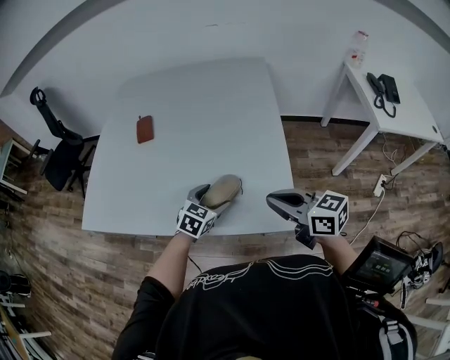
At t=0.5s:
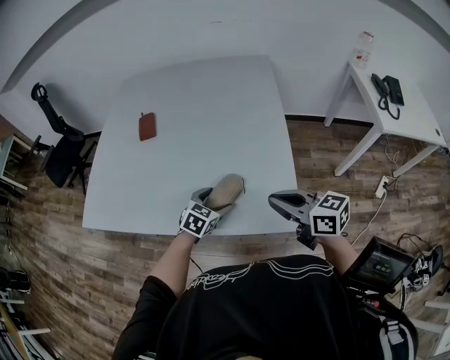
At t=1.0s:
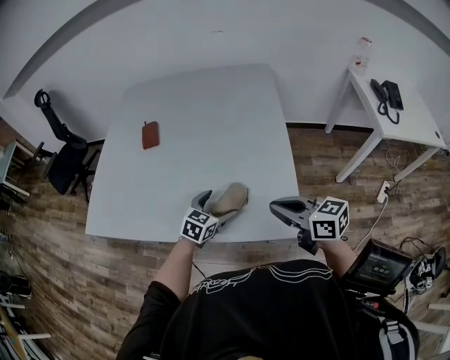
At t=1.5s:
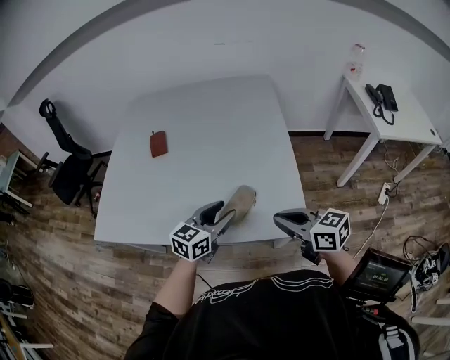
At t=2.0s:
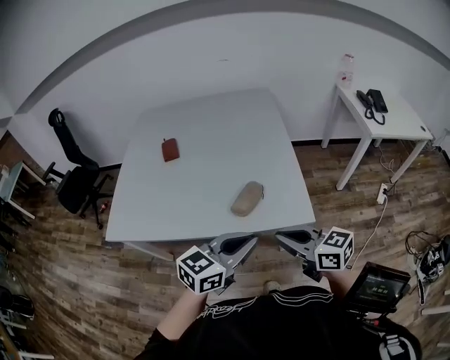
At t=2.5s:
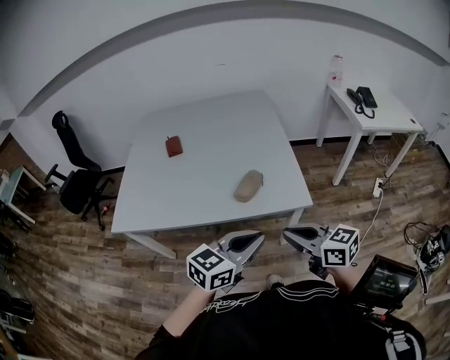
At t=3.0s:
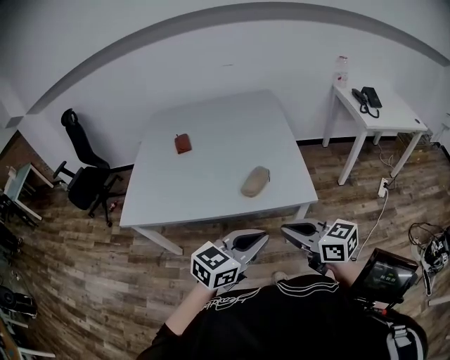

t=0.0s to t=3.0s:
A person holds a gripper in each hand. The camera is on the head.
t=0.0s to t=1.5s: The left gripper goes roughly 10 cm upward, and changes its angle by approximately 30 degrees.
t=1.5s to t=3.0s: The left gripper is displaced backward and upward by some 30 cm, and closes up. The right gripper goes roughly 20 cm backward.

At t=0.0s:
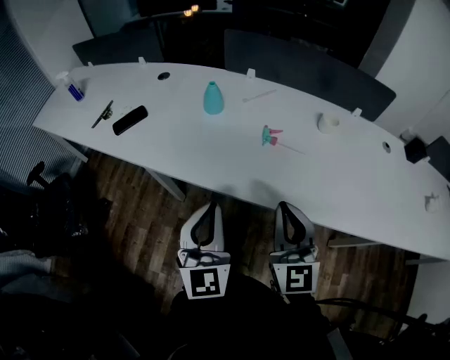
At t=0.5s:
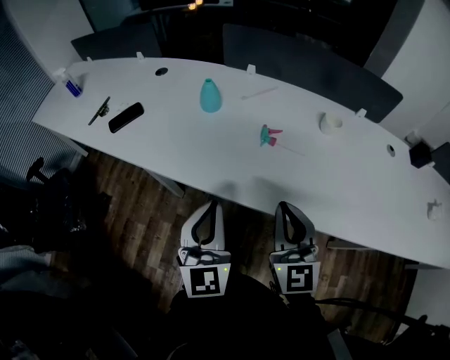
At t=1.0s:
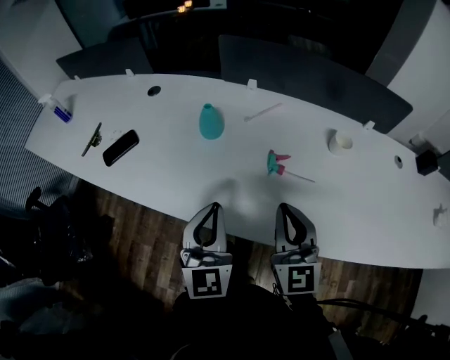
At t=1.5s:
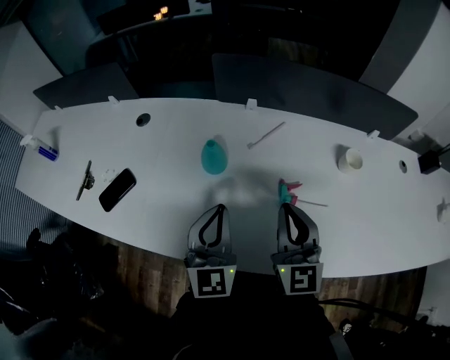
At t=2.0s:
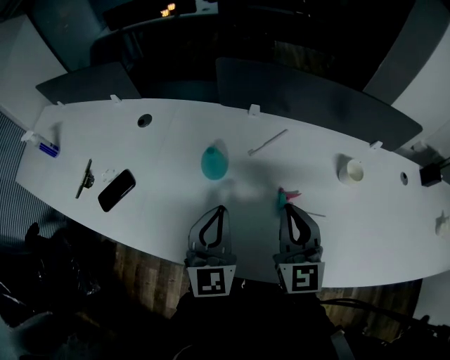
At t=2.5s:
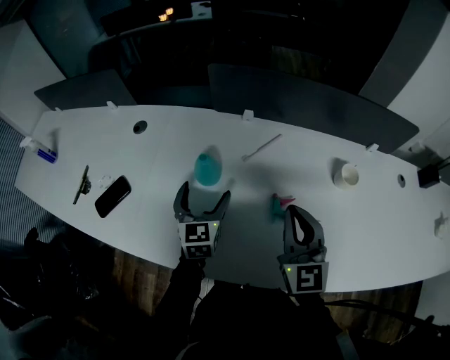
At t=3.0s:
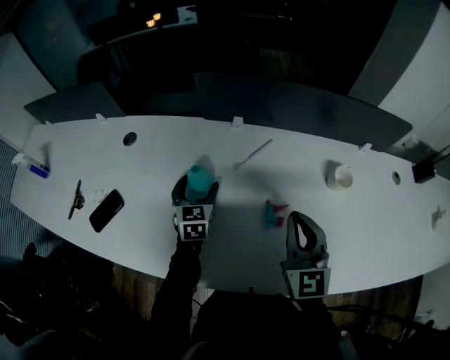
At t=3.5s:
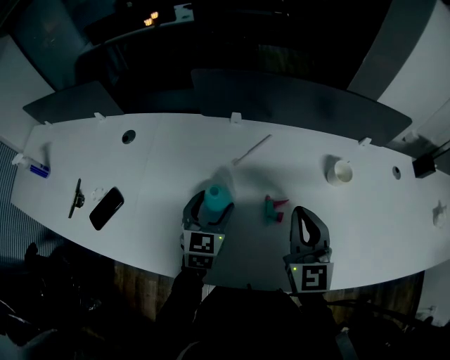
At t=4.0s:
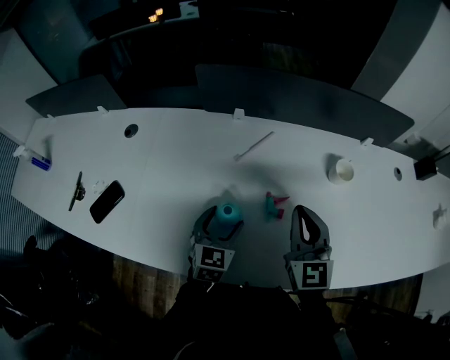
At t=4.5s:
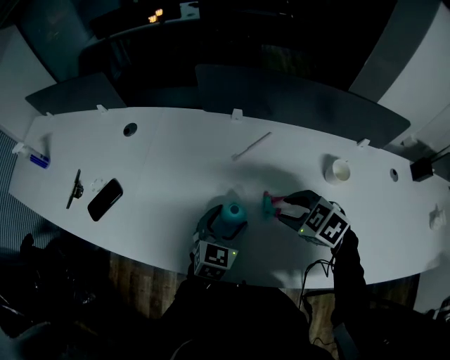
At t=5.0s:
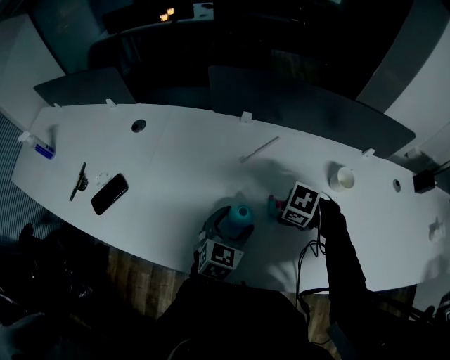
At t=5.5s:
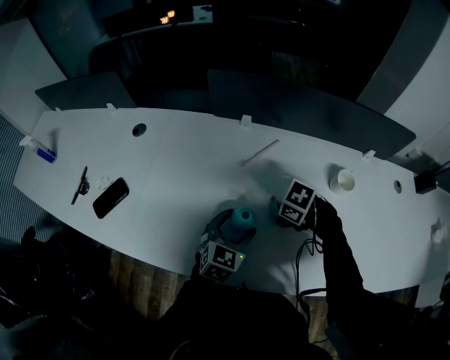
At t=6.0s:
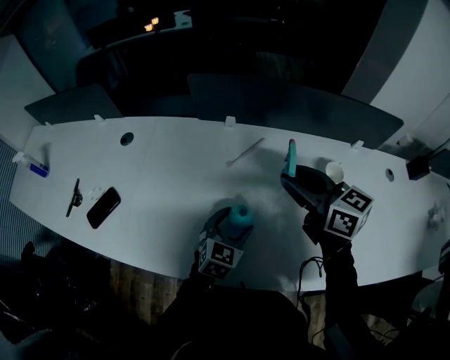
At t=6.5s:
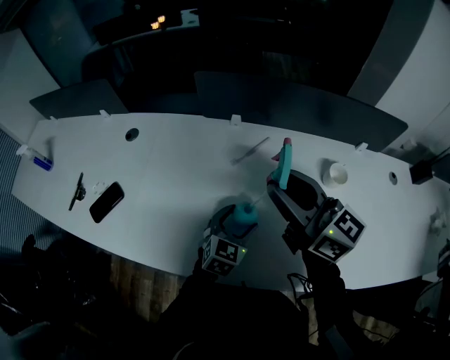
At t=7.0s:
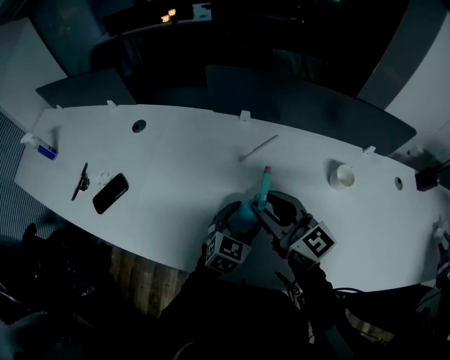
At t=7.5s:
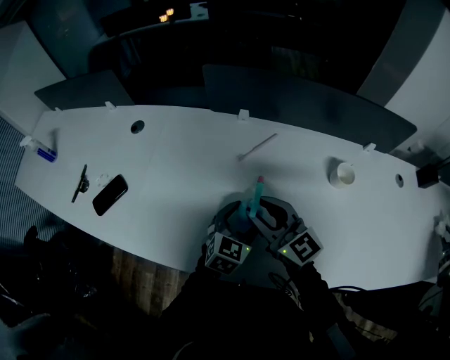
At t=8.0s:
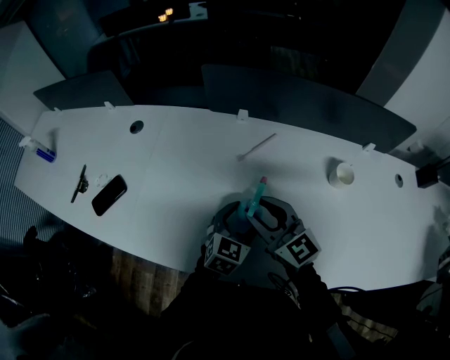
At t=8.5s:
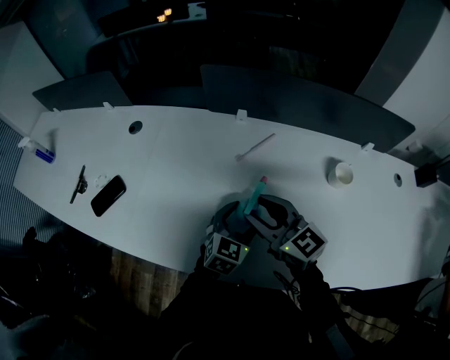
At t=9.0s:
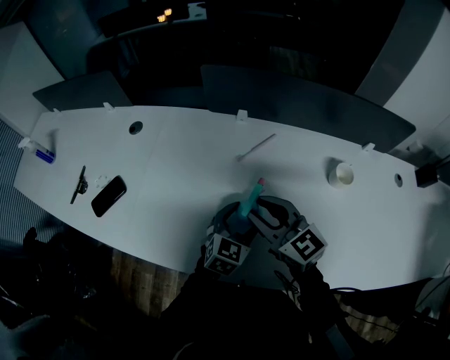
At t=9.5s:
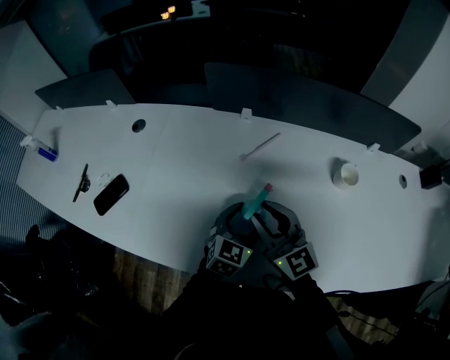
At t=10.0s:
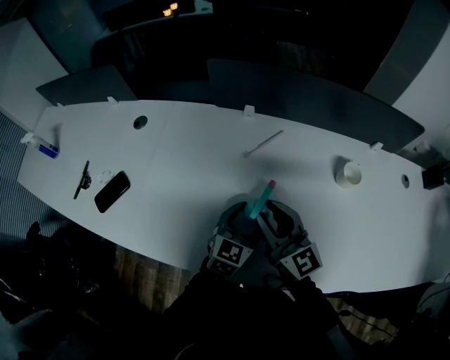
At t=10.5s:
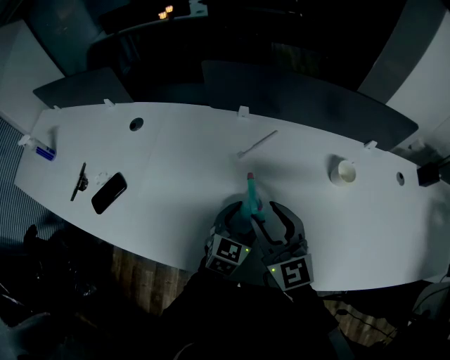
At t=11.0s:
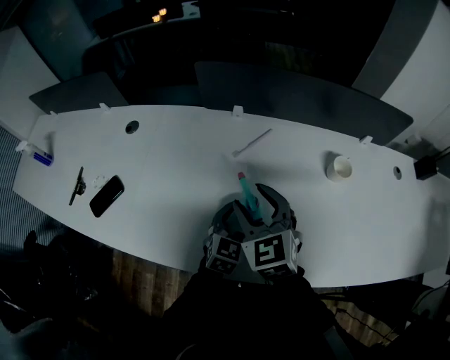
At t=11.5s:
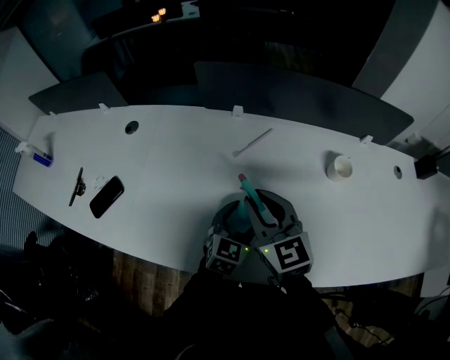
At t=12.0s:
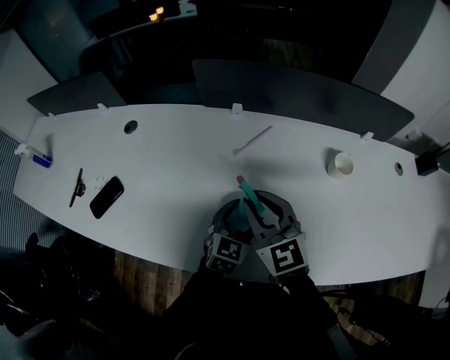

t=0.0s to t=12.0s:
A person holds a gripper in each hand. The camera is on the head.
t=0.0s to t=2.0s: Both grippers move forward, about 30 cm.
t=2.0s to t=4.0s: The right gripper shifts some 5 cm to the right. The left gripper is displaced downward and to the right by approximately 15 cm, goes forward and returns, some 15 cm each way, changes its angle by some 30 degrees, and opens its fingers.
t=4.0s to t=6.0s: The left gripper shifts by approximately 5 cm; the right gripper reaches about 20 cm downward, then returns, rotates approximately 40 degrees, and opens up.
t=6.0s to t=8.0s: The right gripper moves to the left and downward, roughly 15 cm, and rotates approximately 20 degrees.
t=8.0s to t=10.0s: The grippers move only a little.
t=10.0s to t=12.0s: The right gripper swivels about 30 degrees, and opens, then closes again.

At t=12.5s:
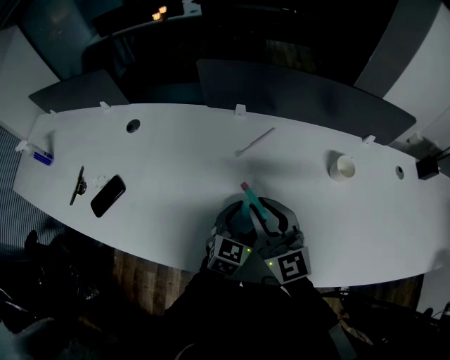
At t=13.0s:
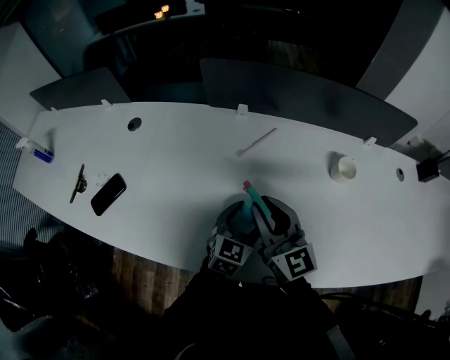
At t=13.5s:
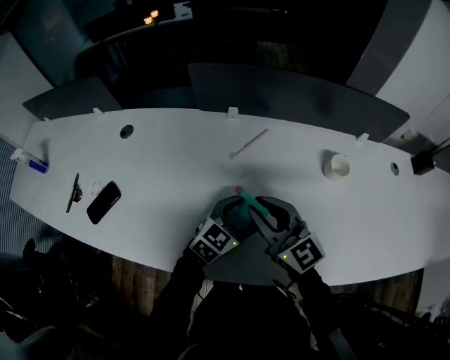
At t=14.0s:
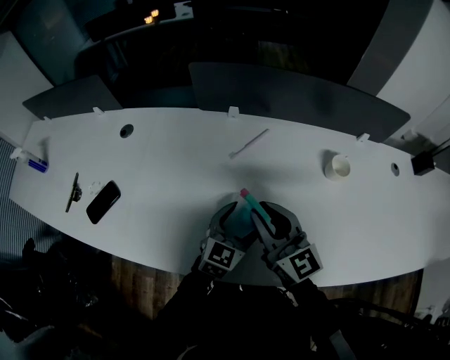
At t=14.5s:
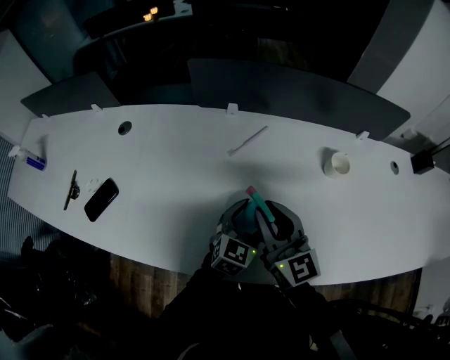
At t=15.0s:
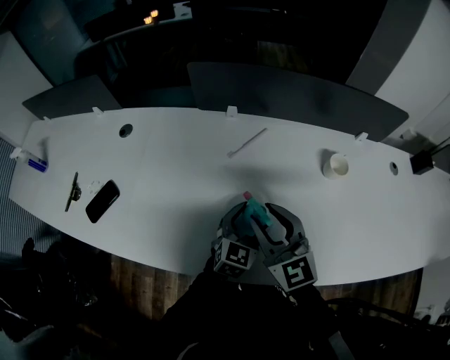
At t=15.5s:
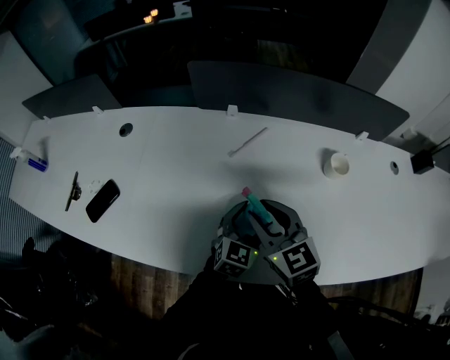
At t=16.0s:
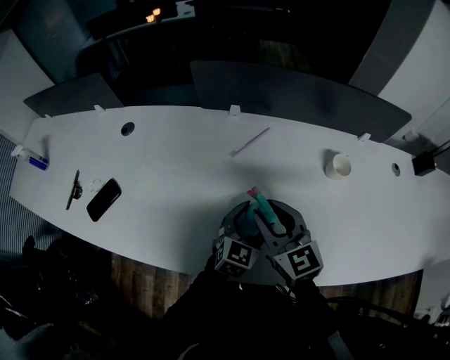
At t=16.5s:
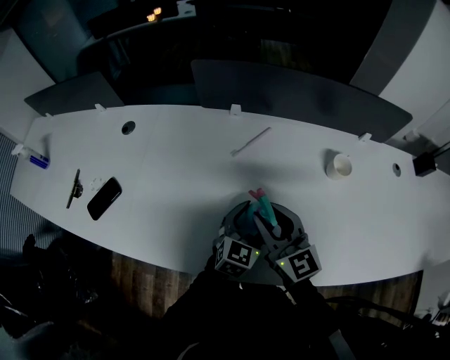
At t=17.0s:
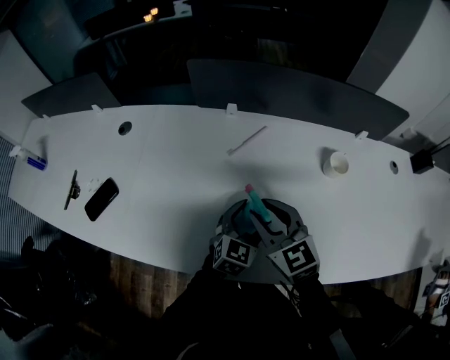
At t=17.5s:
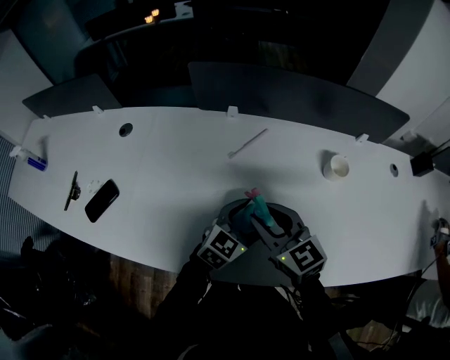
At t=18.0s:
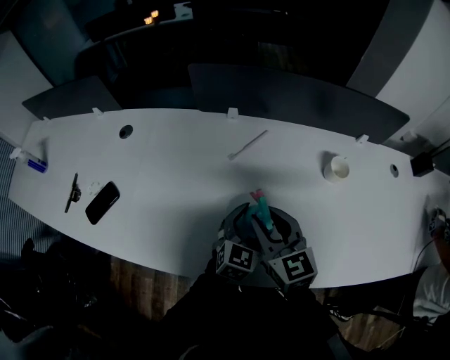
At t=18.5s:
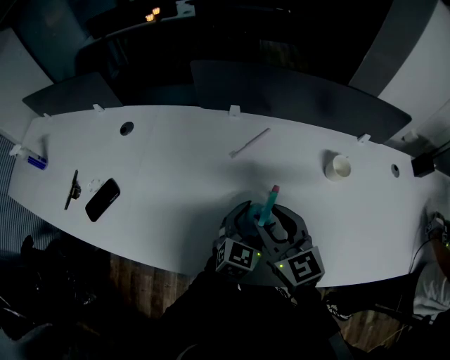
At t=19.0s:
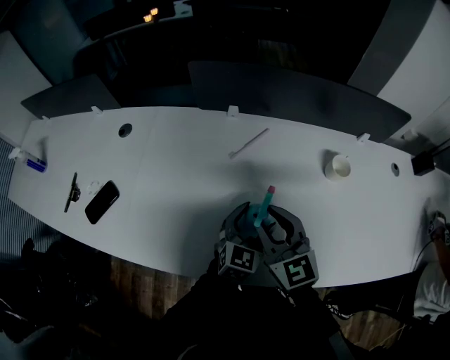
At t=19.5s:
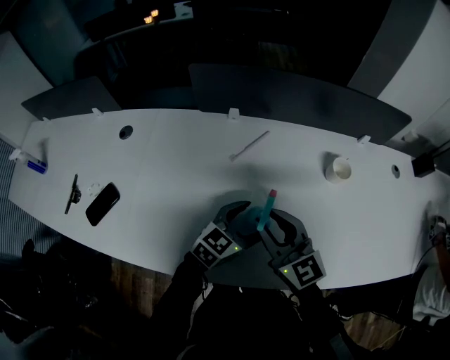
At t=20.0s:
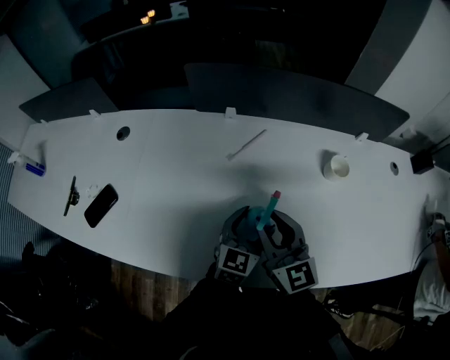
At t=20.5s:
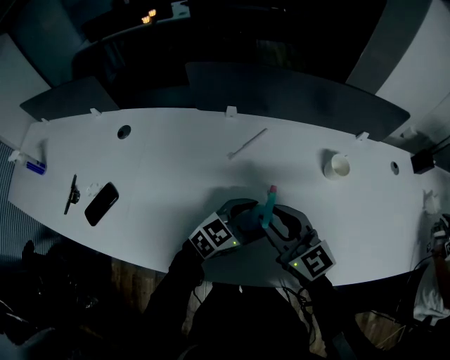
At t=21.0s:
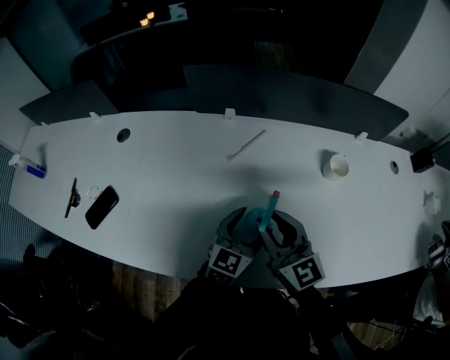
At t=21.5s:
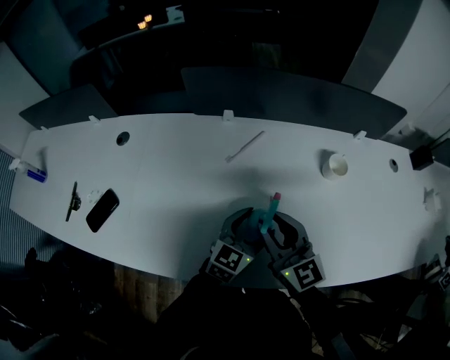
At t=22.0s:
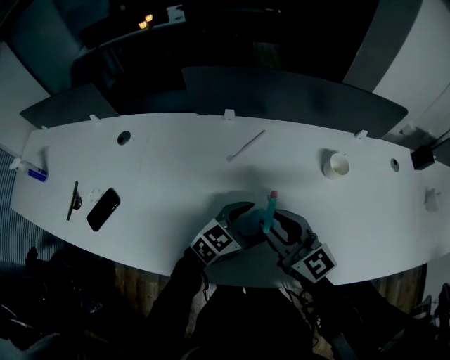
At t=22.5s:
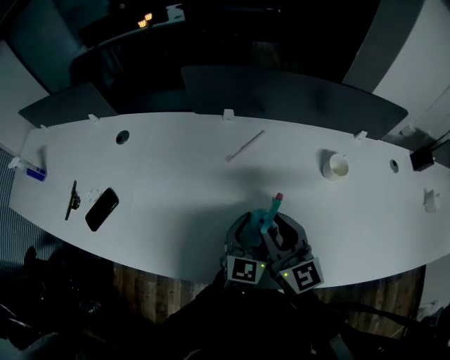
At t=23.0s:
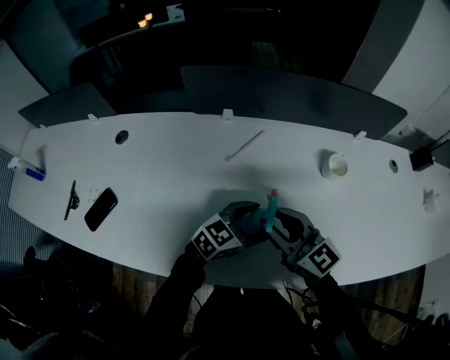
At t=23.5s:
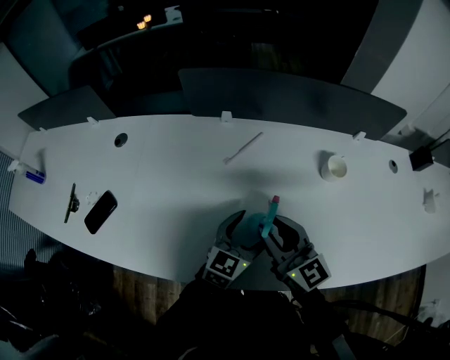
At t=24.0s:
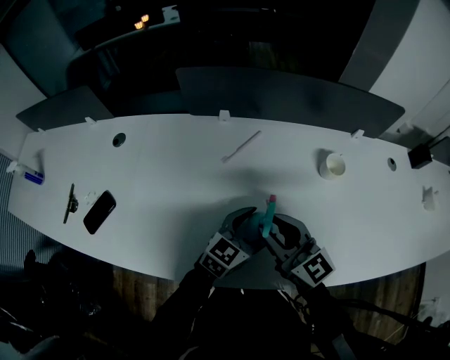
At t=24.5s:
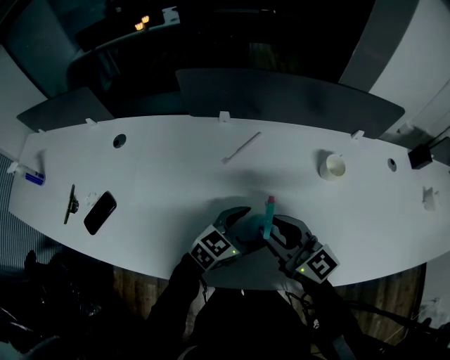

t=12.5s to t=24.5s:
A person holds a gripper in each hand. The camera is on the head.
t=18.5s to t=20.5s: The left gripper turns by about 30 degrees.
t=20.5s to t=22.5s: The left gripper changes its angle by some 40 degrees.
t=22.5s to t=24.5s: The left gripper changes its angle by roughly 40 degrees.
